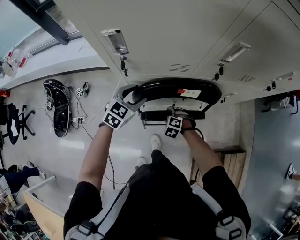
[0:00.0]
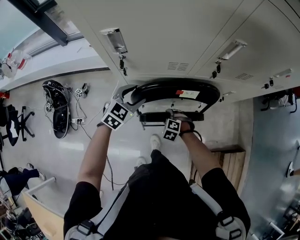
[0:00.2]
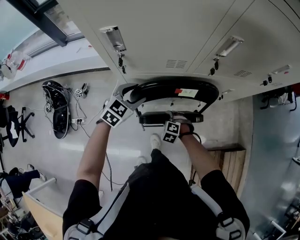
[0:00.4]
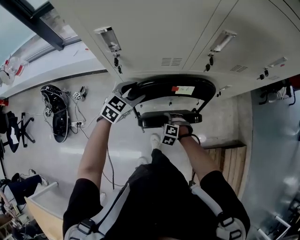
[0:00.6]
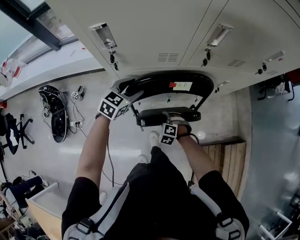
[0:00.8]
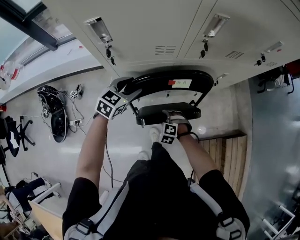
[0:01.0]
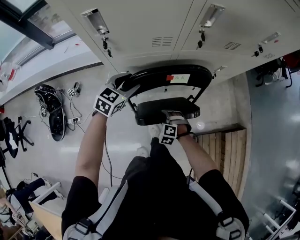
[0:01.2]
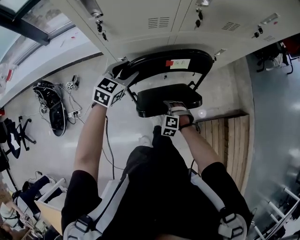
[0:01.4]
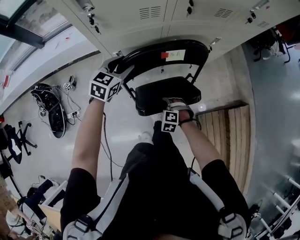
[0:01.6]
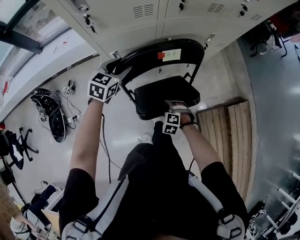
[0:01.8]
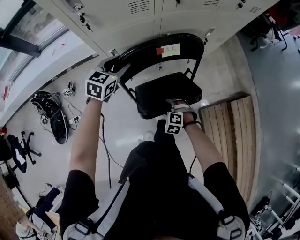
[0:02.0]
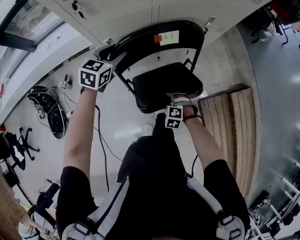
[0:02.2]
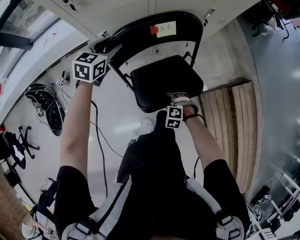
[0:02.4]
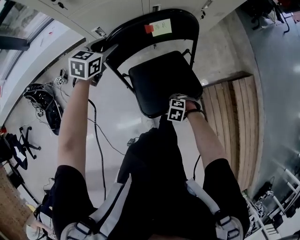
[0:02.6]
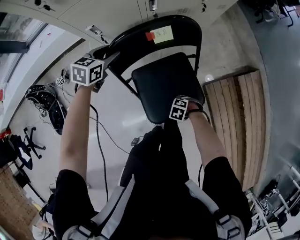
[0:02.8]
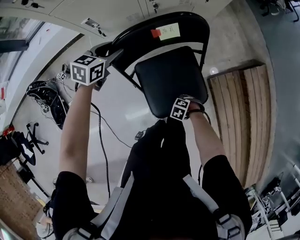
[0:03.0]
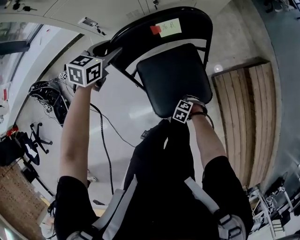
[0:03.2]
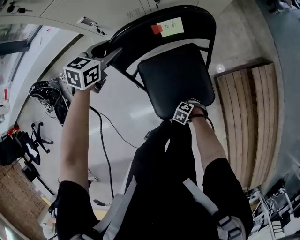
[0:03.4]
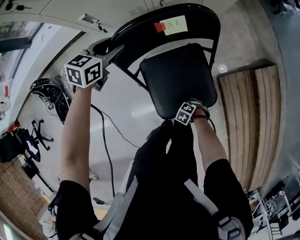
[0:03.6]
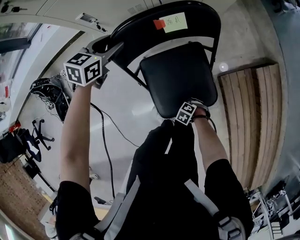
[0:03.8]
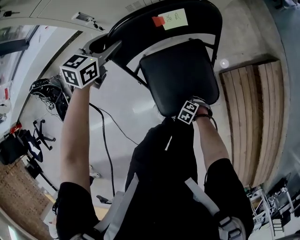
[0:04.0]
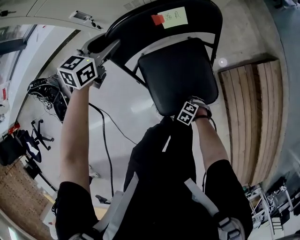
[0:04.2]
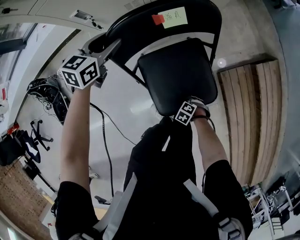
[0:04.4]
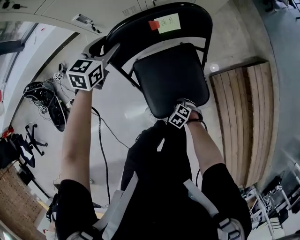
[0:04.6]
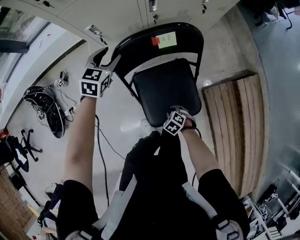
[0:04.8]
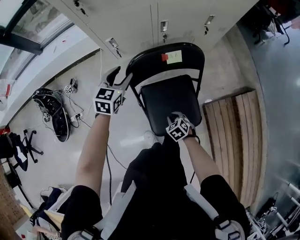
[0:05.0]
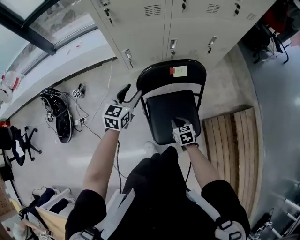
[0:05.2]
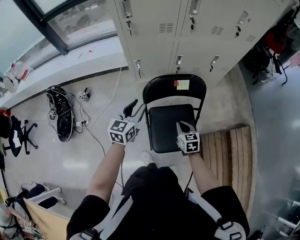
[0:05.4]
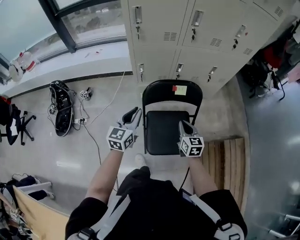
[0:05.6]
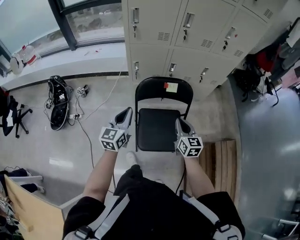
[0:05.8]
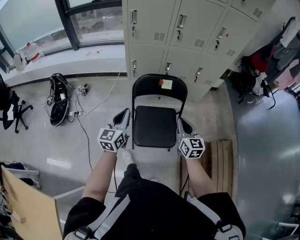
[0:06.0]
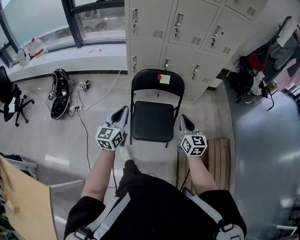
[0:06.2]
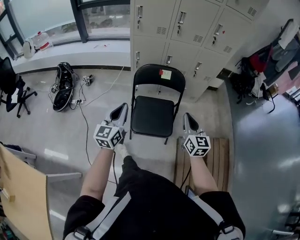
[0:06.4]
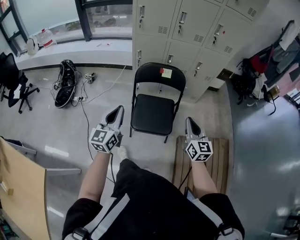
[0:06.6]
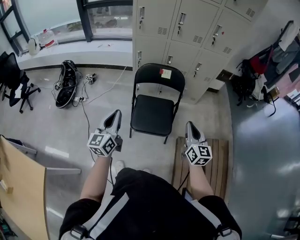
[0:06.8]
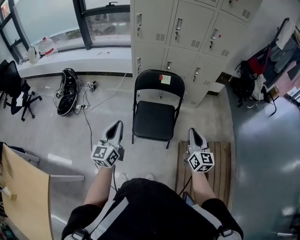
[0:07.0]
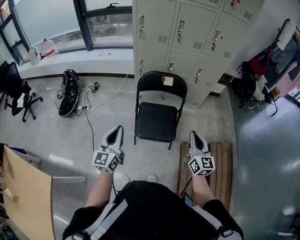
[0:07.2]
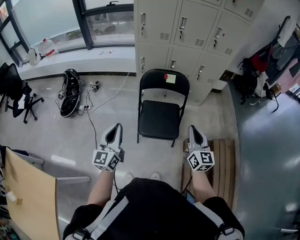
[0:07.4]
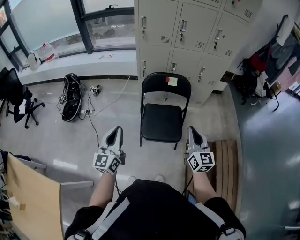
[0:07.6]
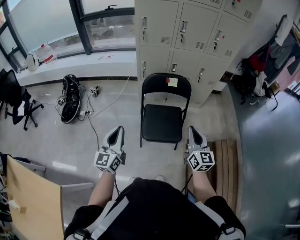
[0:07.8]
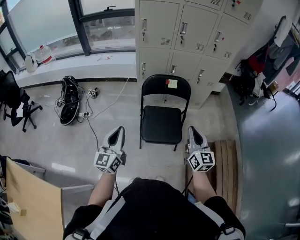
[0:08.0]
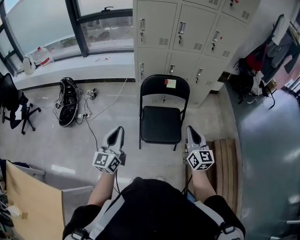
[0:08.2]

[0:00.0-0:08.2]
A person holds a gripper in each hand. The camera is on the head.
0:00.0 to 0:01.6: The right gripper goes roughly 20 cm backward. The left gripper travels backward by roughly 5 cm.
0:01.6 to 0:03.2: The right gripper shifts by roughly 30 cm, changes its angle by approximately 30 degrees, and closes. The left gripper goes about 15 cm downward.
0:03.2 to 0:05.0: The right gripper travels upward by approximately 15 cm, and rotates some 30 degrees. Meanwhile the left gripper moves upward, about 5 cm, and turns by approximately 20 degrees.
0:05.0 to 0:06.6: The right gripper shifts roughly 50 cm upward and to the right, and tips its fingers upward by roughly 60 degrees. Meanwhile the left gripper heads backward and upward, covering about 50 cm, angles its fingers upward, by some 30 degrees, and closes its fingers.
0:06.6 to 0:08.2: The grippers both shift to the left by roughly 10 cm.

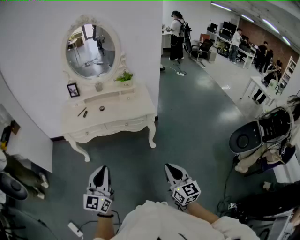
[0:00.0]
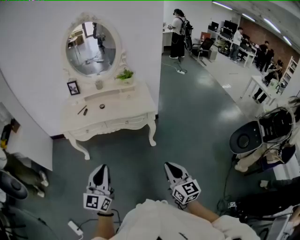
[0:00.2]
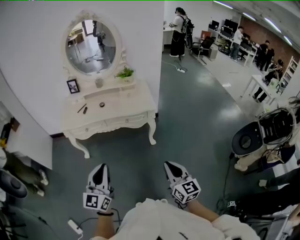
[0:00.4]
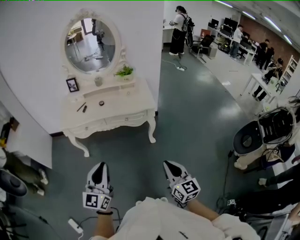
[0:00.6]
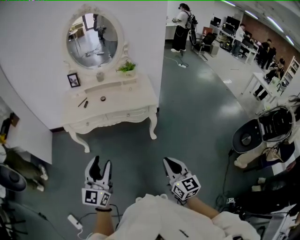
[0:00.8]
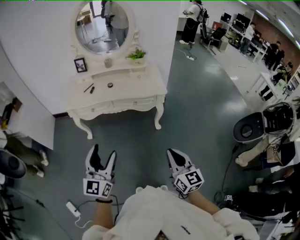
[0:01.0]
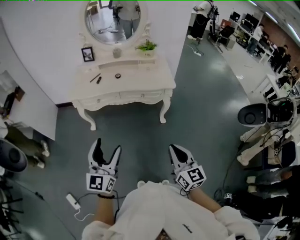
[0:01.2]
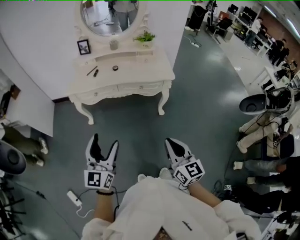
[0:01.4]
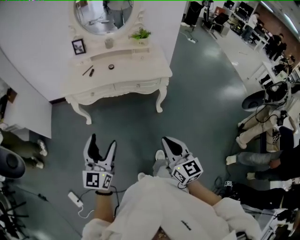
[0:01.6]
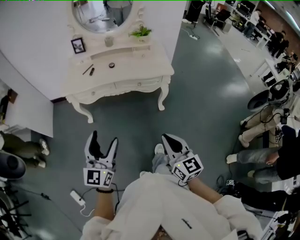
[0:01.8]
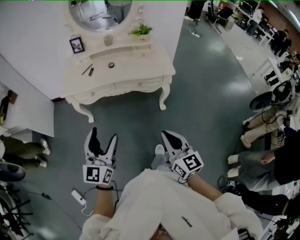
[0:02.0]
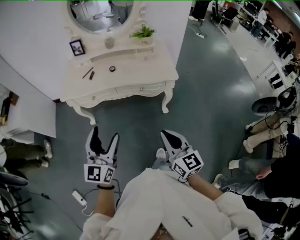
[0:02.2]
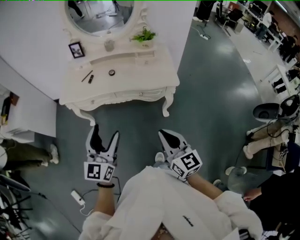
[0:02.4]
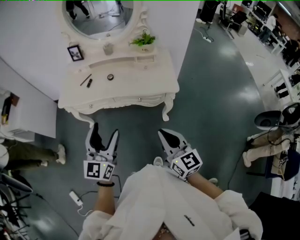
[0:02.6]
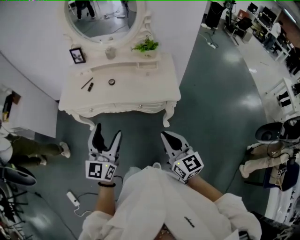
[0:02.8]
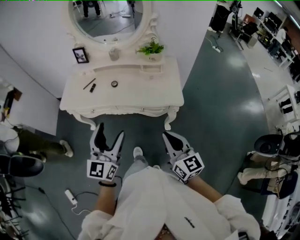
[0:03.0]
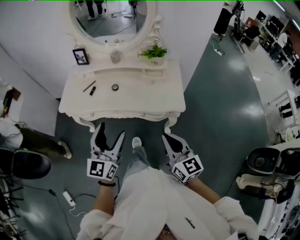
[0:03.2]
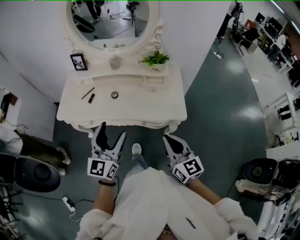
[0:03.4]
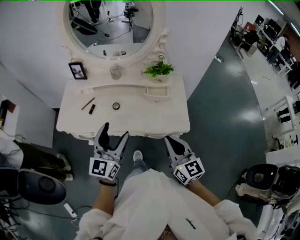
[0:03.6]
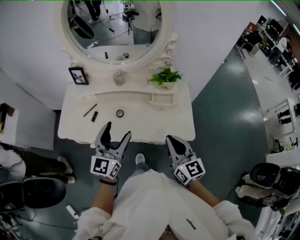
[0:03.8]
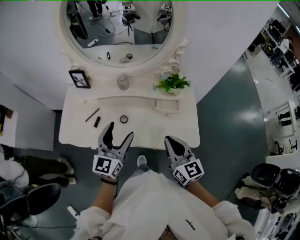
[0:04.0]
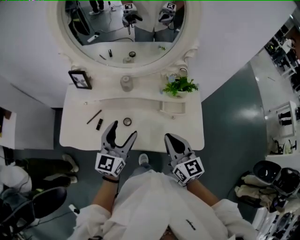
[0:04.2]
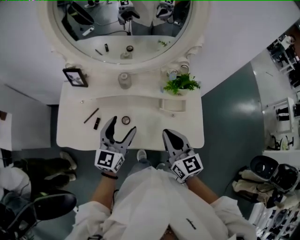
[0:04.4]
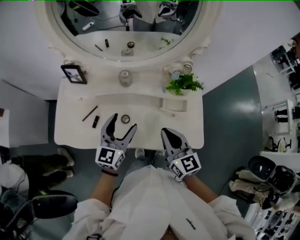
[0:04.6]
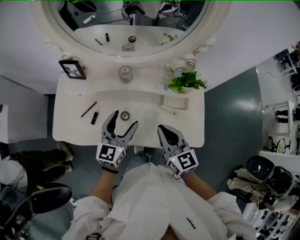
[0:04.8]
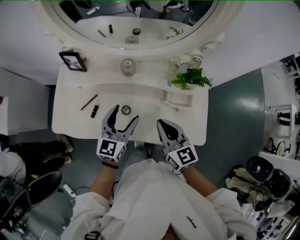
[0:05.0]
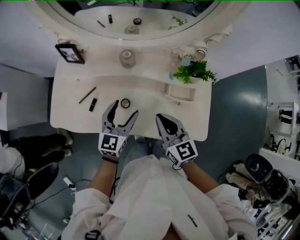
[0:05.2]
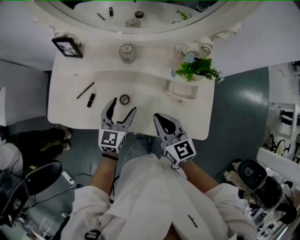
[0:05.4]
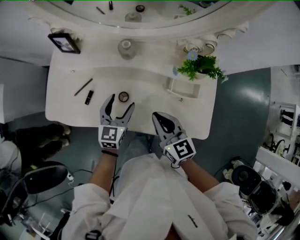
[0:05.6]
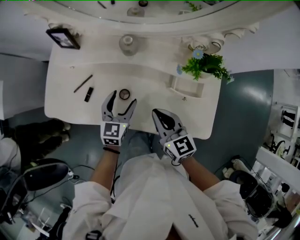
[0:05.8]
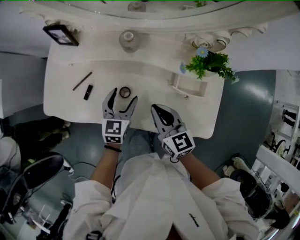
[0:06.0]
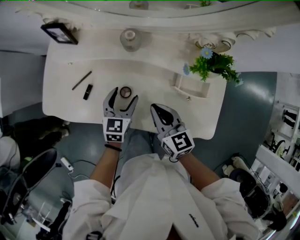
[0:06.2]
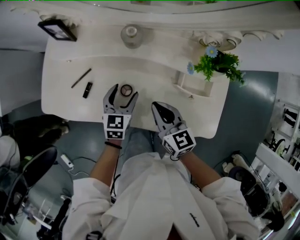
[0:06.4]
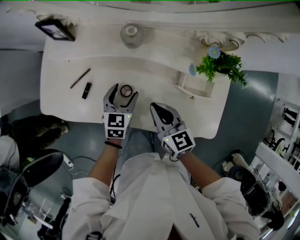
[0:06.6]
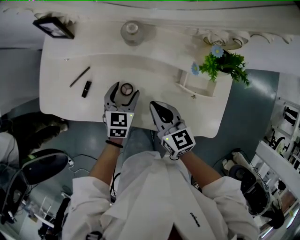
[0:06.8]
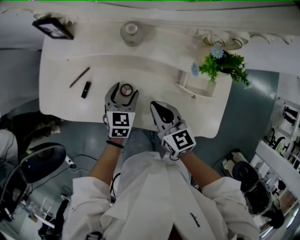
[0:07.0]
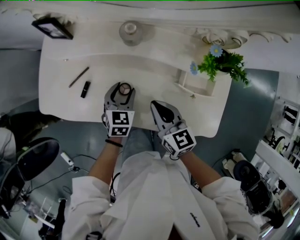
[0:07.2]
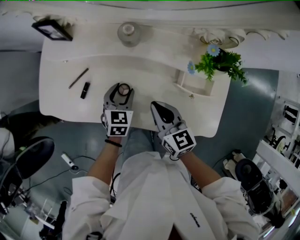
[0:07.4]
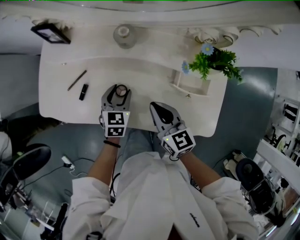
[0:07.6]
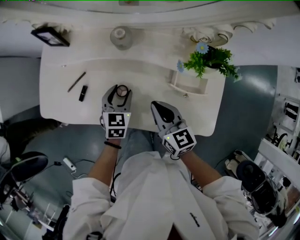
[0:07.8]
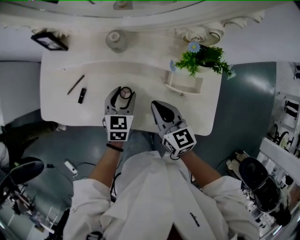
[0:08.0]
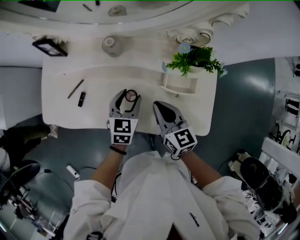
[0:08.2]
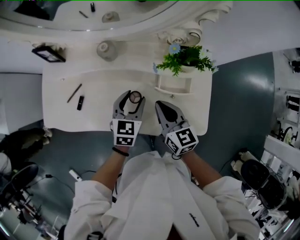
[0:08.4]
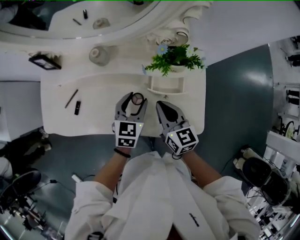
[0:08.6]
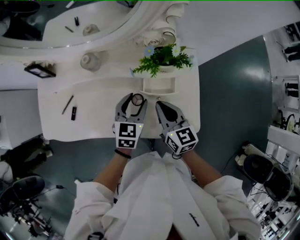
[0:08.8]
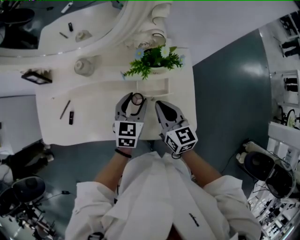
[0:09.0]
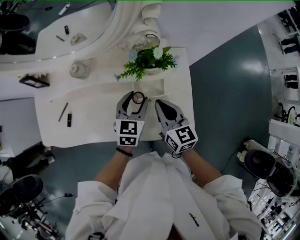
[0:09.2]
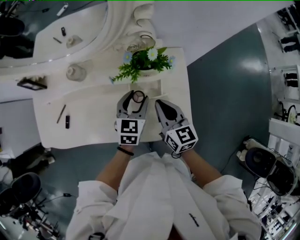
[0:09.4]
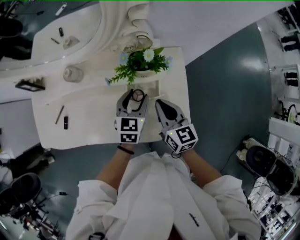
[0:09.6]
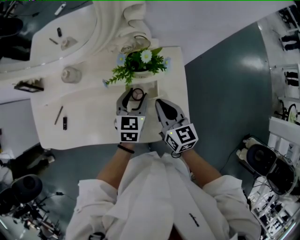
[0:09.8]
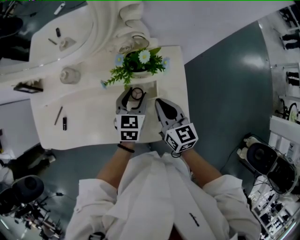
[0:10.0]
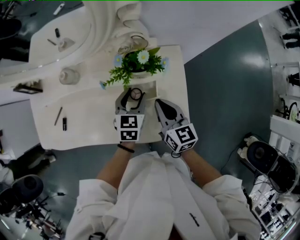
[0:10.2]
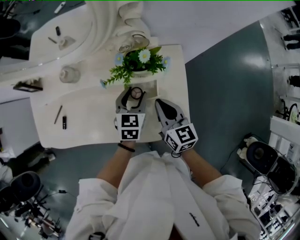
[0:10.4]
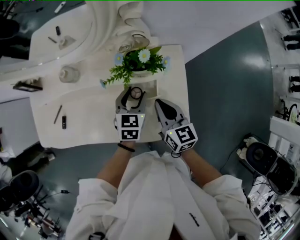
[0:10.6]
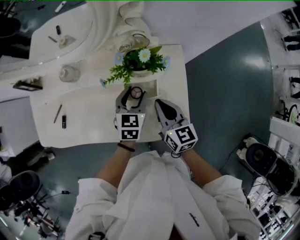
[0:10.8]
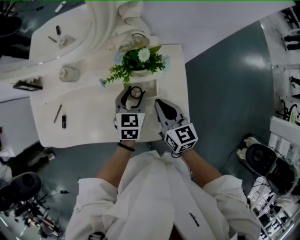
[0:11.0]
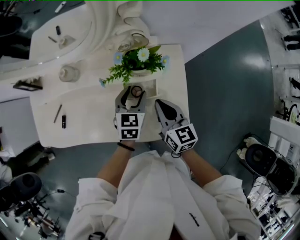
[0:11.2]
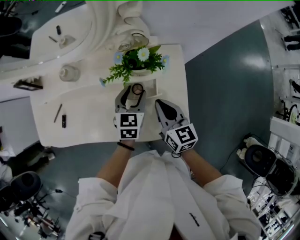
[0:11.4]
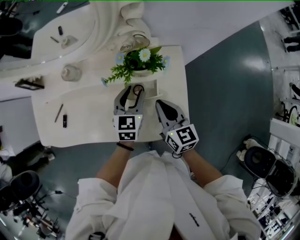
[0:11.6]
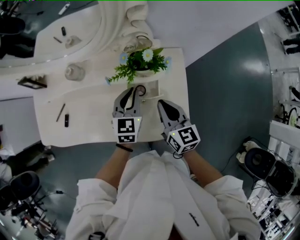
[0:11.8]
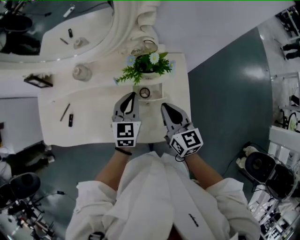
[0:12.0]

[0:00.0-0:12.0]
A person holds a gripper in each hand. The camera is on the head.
0:00.0 to 0:01.6: Both grippers travel together to the left, some 10 cm. The left gripper opens.
0:01.6 to 0:03.0: The grippers both shift forward and to the right by some 30 cm.
0:03.0 to 0:04.4: The two grippers travel together, forward, approximately 40 cm.
0:04.4 to 0:06.0: The right gripper shifts approximately 15 cm downward and forward, while the left gripper moves downward, roughly 20 cm, and turns by some 30 degrees.
0:06.0 to 0:07.6: The left gripper heads downward, covering some 5 cm.
0:07.6 to 0:09.0: The left gripper is displaced to the right and upward by about 25 cm; the right gripper is displaced to the right by approximately 15 cm.
0:09.0 to 0:10.4: Both grippers travel together to the right, roughly 5 cm.
0:10.4 to 0:12.0: The left gripper goes approximately 5 cm upward, and closes up.

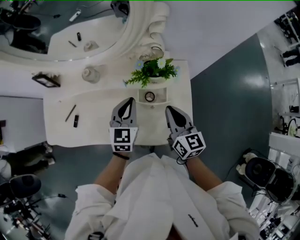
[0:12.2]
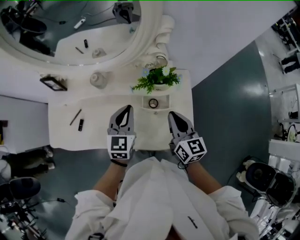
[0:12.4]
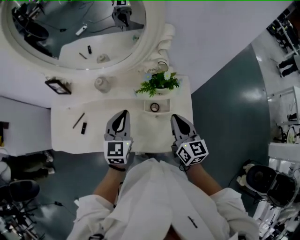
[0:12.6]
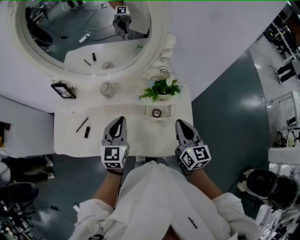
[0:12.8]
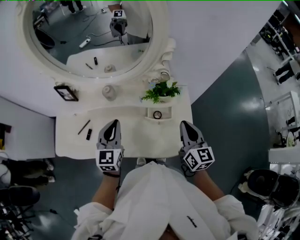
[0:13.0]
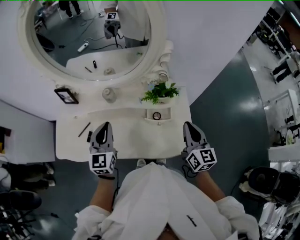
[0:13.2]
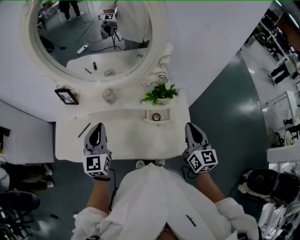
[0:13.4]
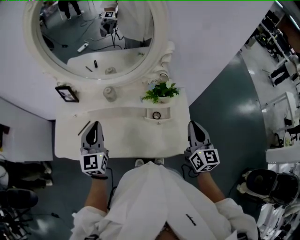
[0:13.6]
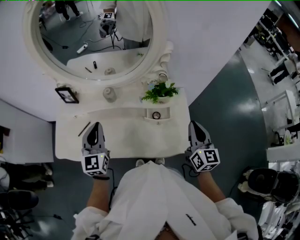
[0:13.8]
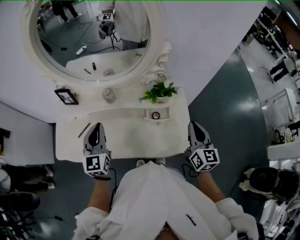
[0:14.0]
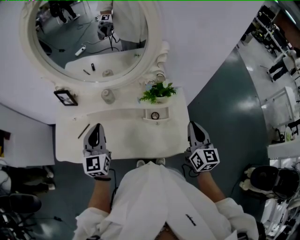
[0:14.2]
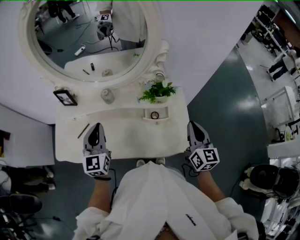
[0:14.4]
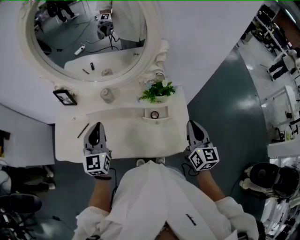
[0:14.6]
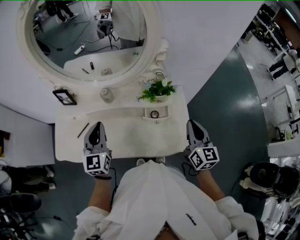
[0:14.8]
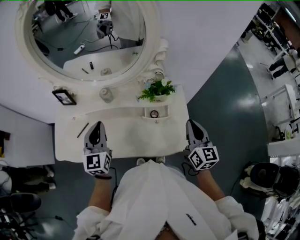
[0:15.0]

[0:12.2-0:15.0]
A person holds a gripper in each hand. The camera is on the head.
0:12.2 to 0:13.6: The left gripper heads to the left and upward, covering some 25 cm, and changes its angle by approximately 20 degrees. Meanwhile the right gripper travels upward and backward by roughly 10 cm.
0:13.6 to 0:15.0: There are only small adjustments of the grippers.
